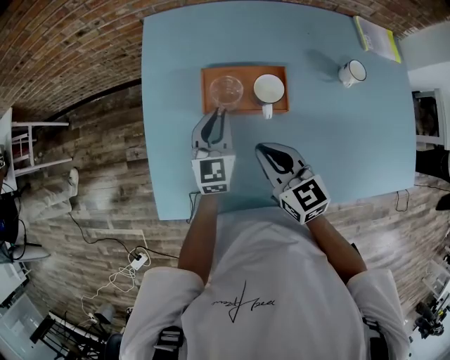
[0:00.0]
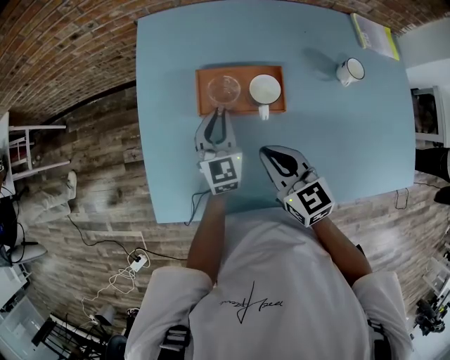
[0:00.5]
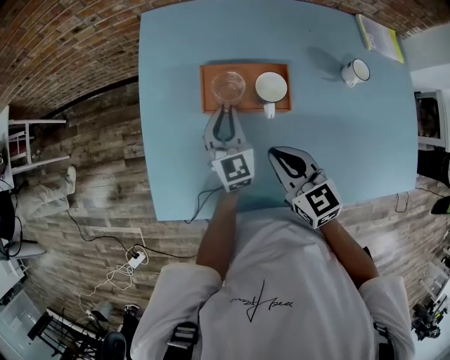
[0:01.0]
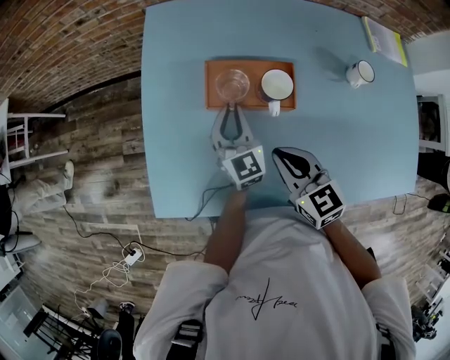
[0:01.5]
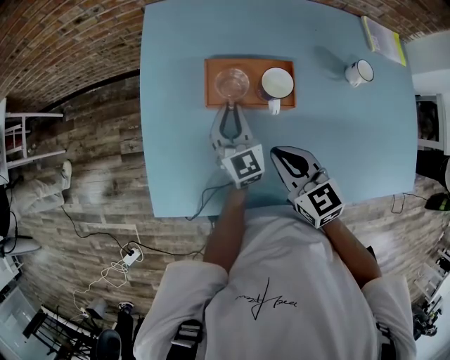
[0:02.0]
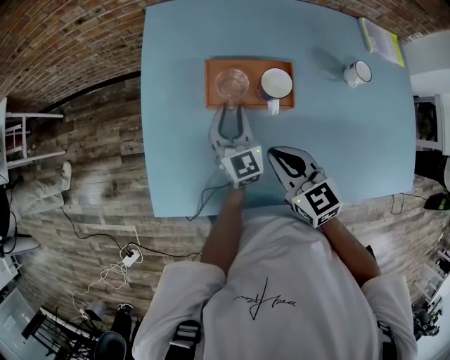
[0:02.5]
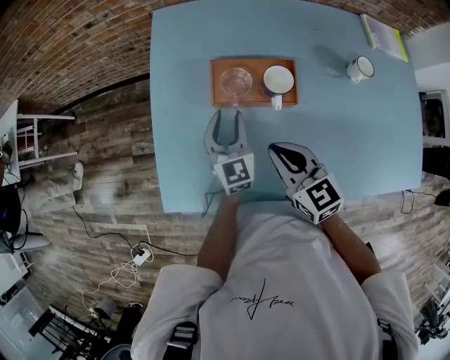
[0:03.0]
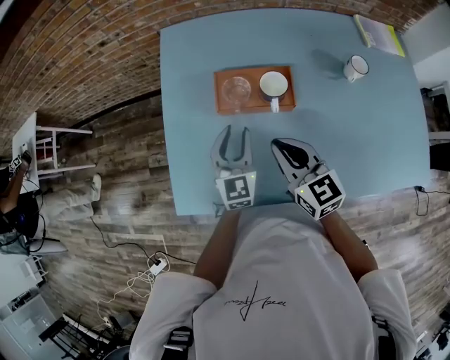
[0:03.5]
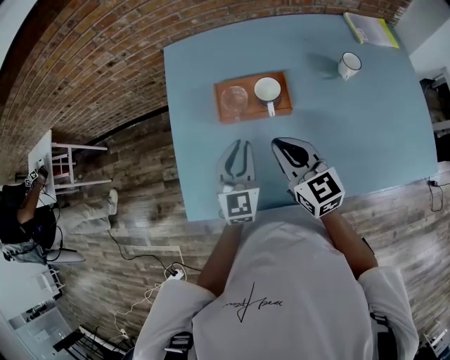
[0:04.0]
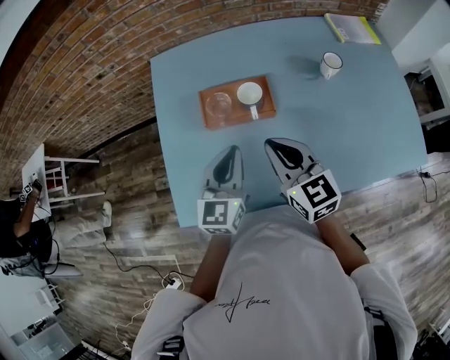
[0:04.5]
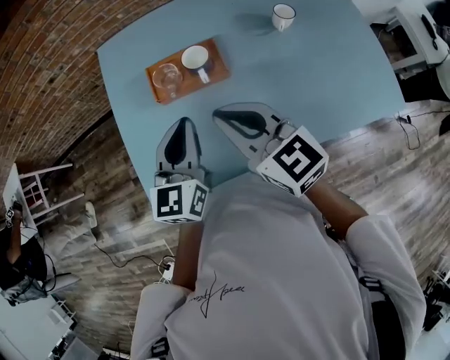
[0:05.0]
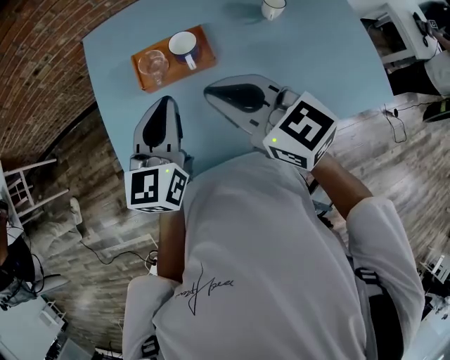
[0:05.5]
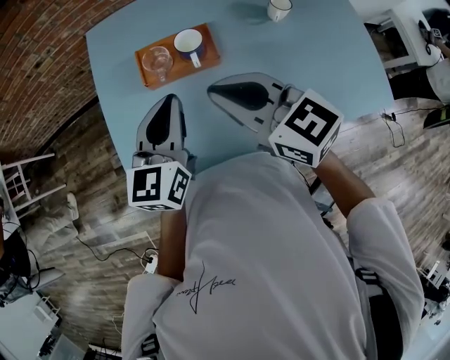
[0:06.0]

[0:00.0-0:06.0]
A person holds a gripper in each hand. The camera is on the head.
0:00.0 to 0:02.0: The grippers move only a little.
0:02.0 to 0:04.0: The right gripper is displaced upward by roughly 5 cm; the left gripper goes roughly 10 cm backward and upward, rotates approximately 20 degrees, and opens, then closes once more.
0:04.0 to 0:06.0: Both grippers travel together upward, about 10 cm. The left gripper swivels about 20 degrees.

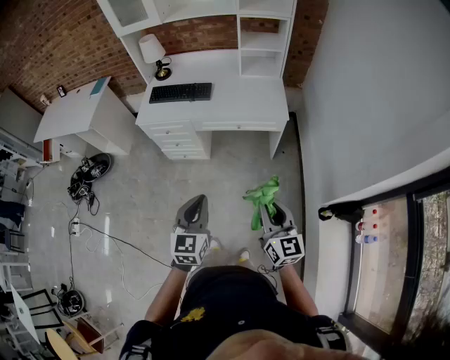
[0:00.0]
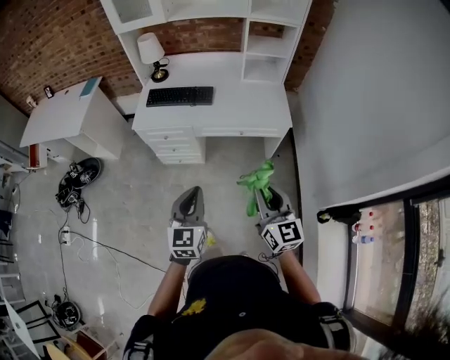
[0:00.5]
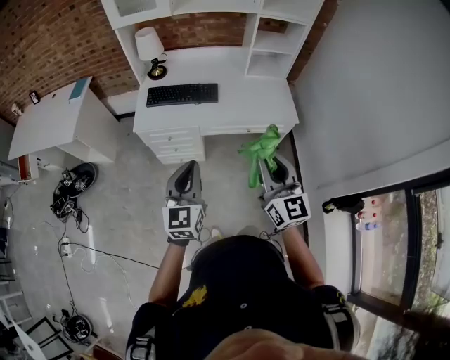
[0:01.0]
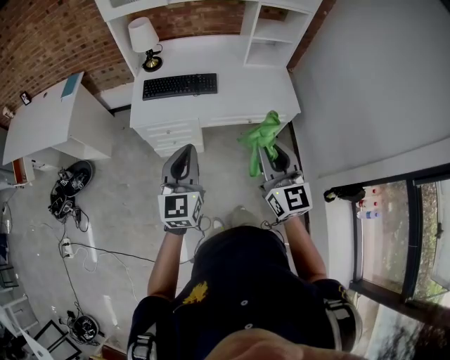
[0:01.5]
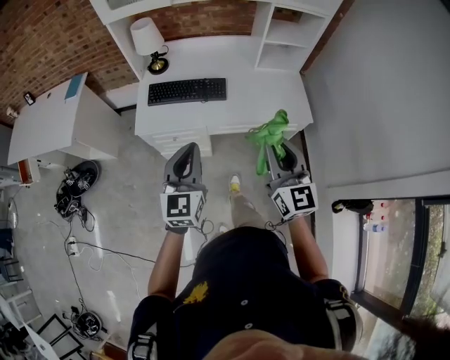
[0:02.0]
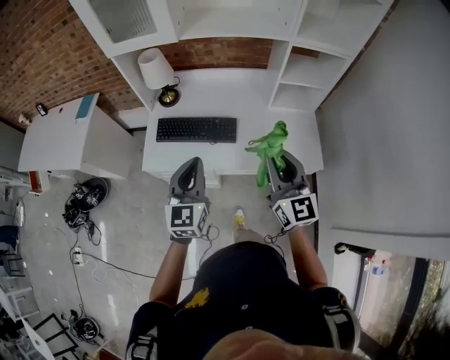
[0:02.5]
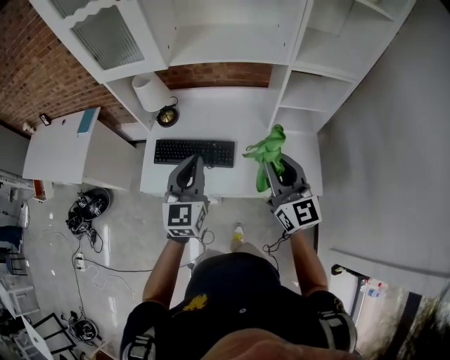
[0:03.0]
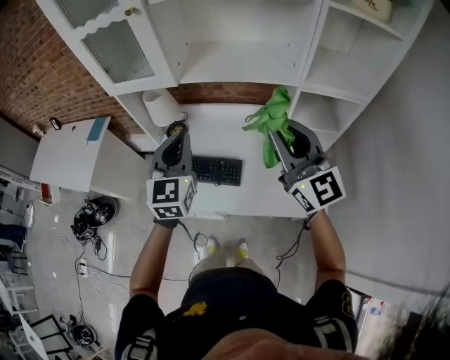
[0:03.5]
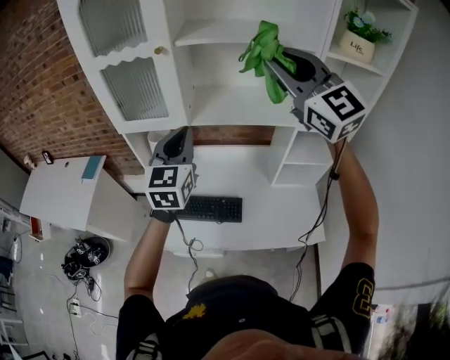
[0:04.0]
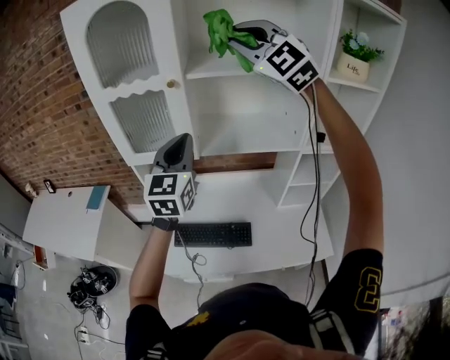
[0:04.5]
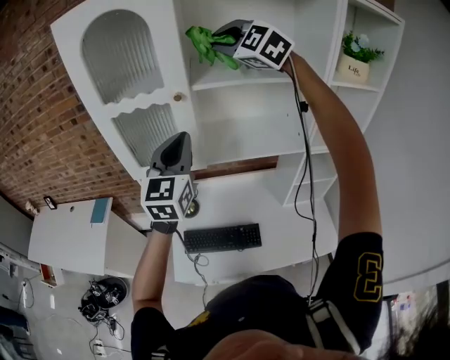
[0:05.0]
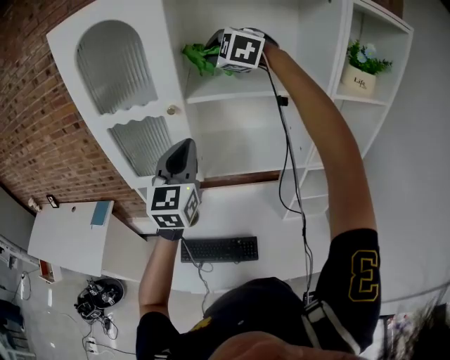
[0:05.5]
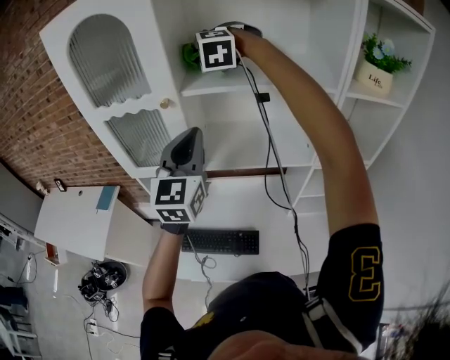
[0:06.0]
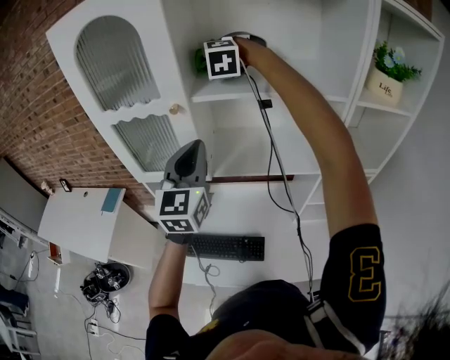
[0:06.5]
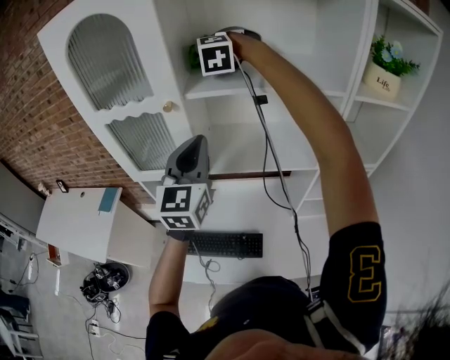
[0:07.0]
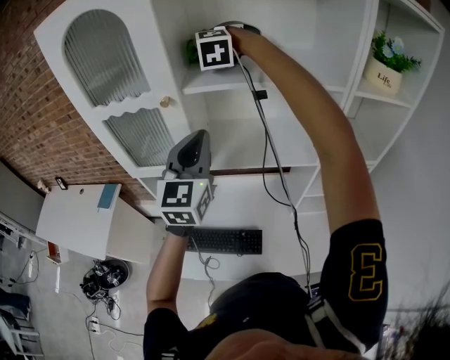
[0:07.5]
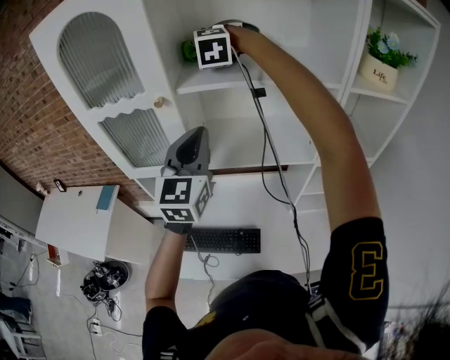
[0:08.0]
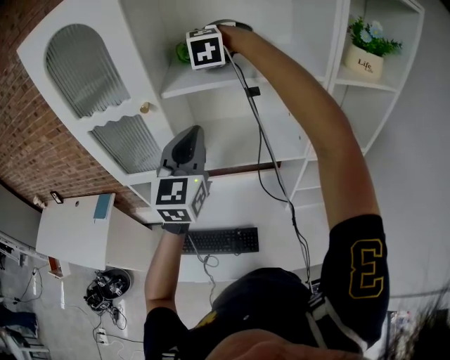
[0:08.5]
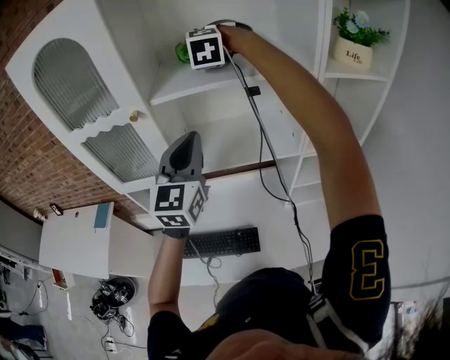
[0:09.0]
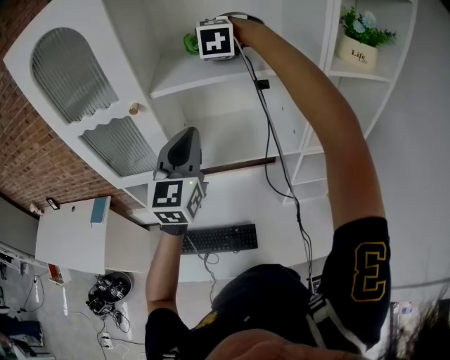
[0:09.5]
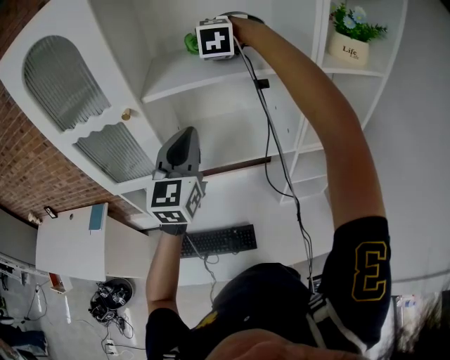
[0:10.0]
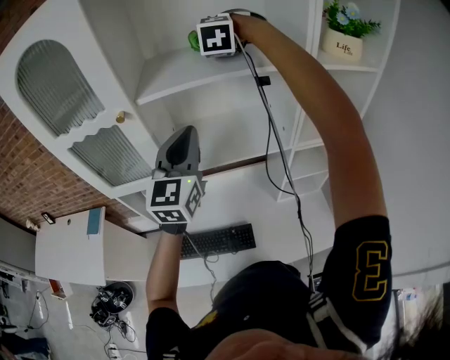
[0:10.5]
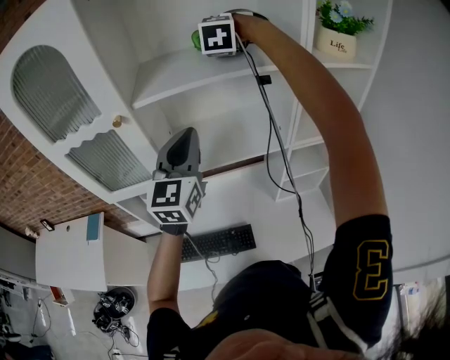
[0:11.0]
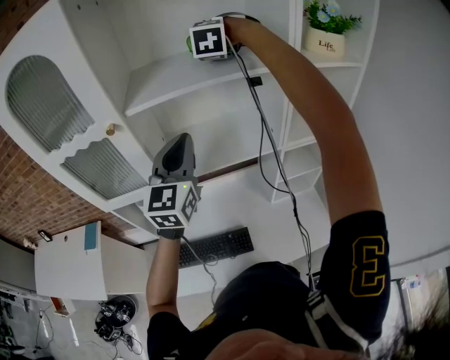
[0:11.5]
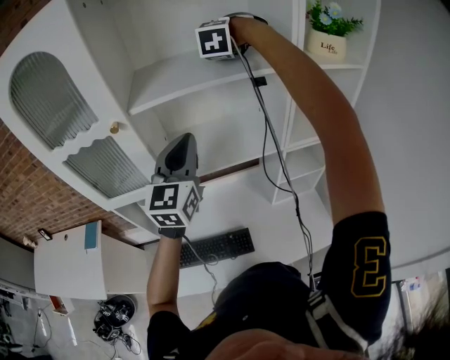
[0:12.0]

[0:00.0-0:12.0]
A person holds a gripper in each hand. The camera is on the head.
0:00.0 to 0:02.0: Both grippers move forward and to the left, about 40 cm.
0:02.0 to 0:04.0: The pair of grippers is taken forward, roughly 50 cm. The left gripper is displaced upward by roughly 25 cm; the right gripper goes some 40 cm upward, and changes its angle by some 40 degrees.
0:04.0 to 0:06.0: The left gripper goes some 15 cm upward and forward. The right gripper shifts approximately 35 cm forward and to the left, and tilts its fingers roughly 40 degrees downward.
0:06.0 to 0:08.0: There are only small adjustments of the grippers.
0:08.0 to 0:10.0: The right gripper is displaced to the right by approximately 10 cm.
0:10.0 to 0:12.0: The right gripper travels to the right by some 10 cm.

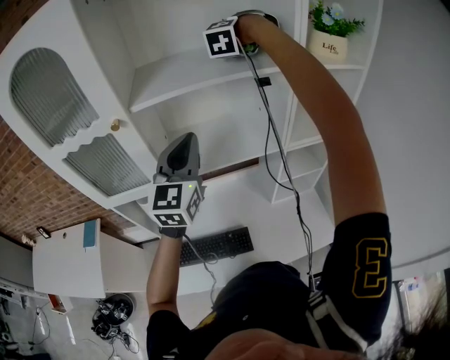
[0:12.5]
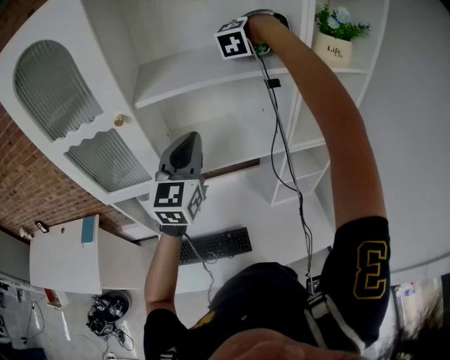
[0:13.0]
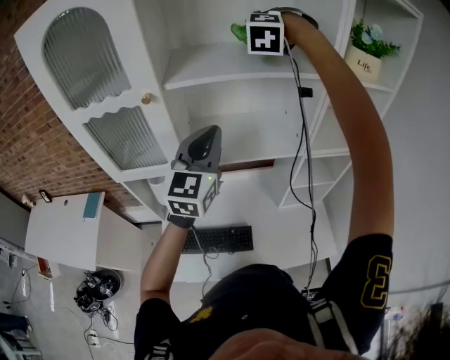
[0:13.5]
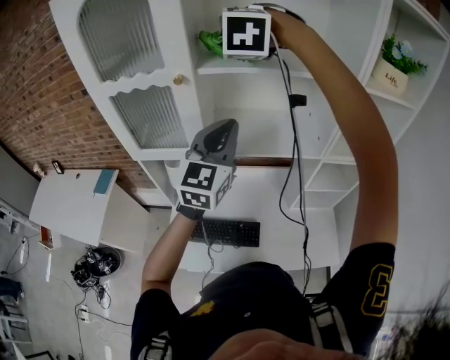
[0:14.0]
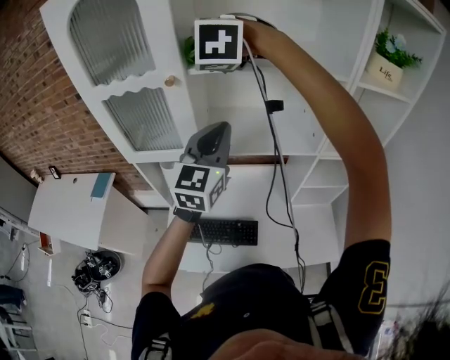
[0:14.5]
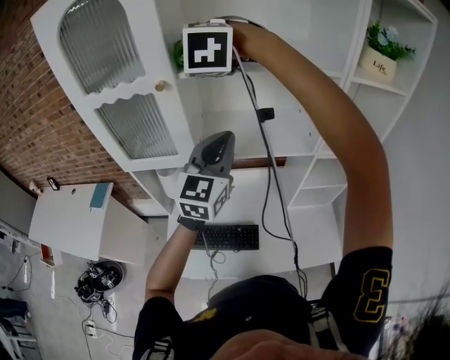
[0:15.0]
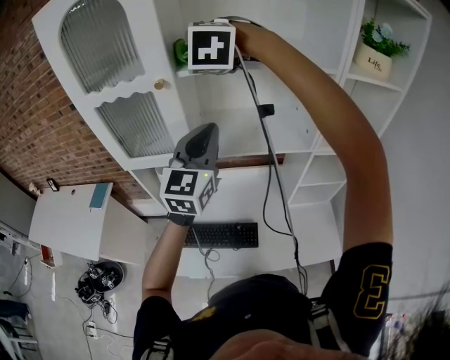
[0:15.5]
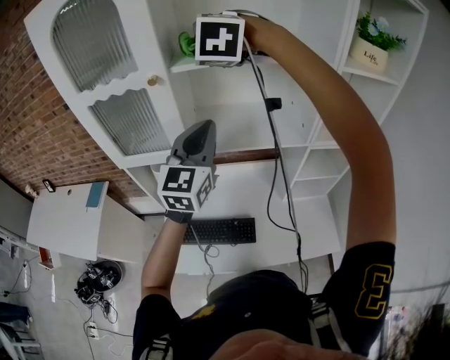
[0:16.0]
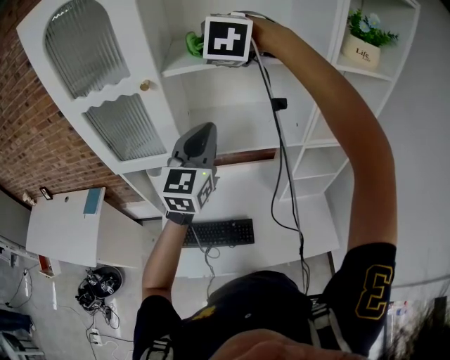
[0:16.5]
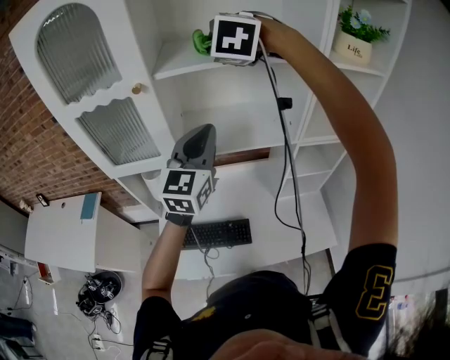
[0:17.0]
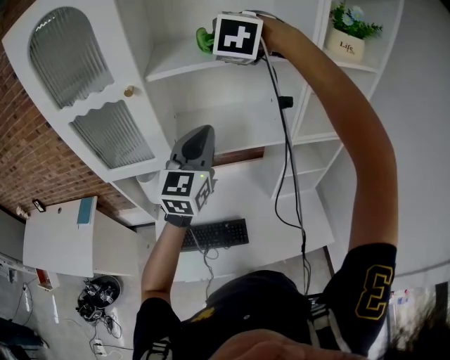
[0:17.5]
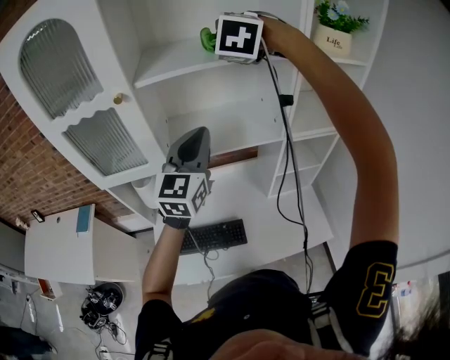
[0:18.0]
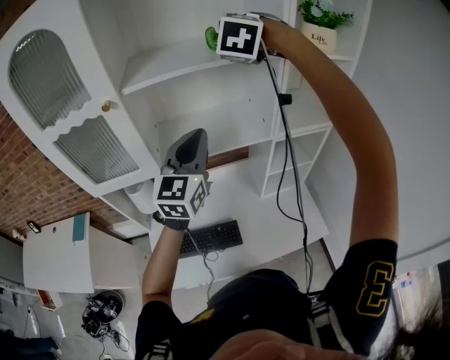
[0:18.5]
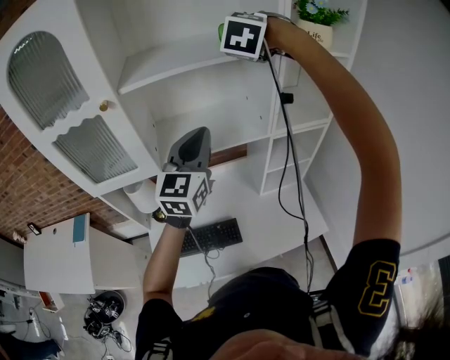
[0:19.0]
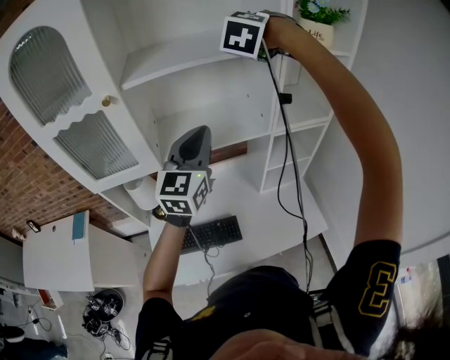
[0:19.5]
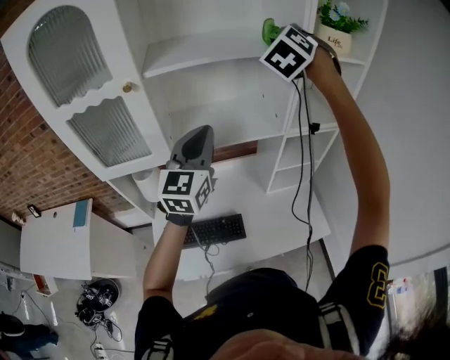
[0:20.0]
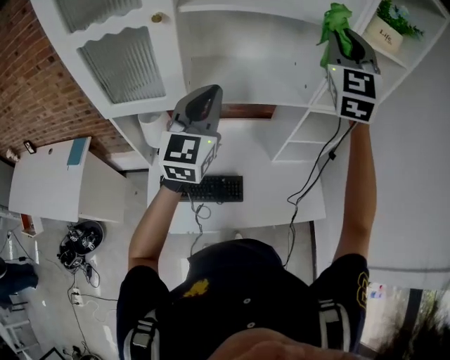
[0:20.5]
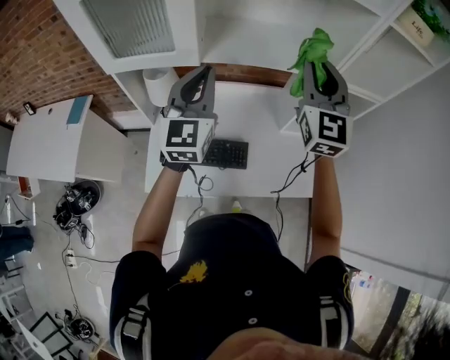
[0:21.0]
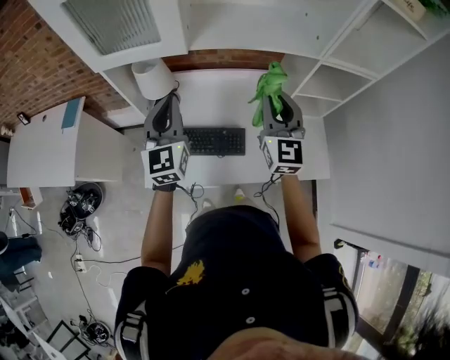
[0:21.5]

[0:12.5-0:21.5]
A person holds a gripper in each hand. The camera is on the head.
0:12.5 to 0:14.5: The right gripper ends up some 30 cm from where it was, and changes its angle by roughly 40 degrees.
0:14.5 to 0:17.0: The right gripper goes approximately 10 cm to the right.
0:17.0 to 0:19.5: The left gripper is displaced to the right by about 5 cm, while the right gripper heads to the right, covering about 15 cm, and swivels about 30 degrees.
0:19.5 to 0:21.5: The left gripper shifts by some 30 cm, and turns by roughly 30 degrees, while the right gripper is displaced downward by about 30 cm, and rolls clockwise, seen from behind, by about 60 degrees.
